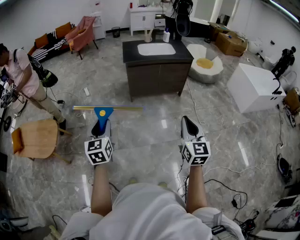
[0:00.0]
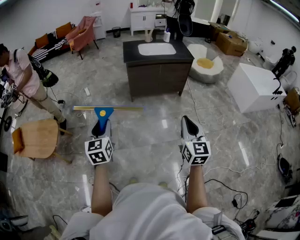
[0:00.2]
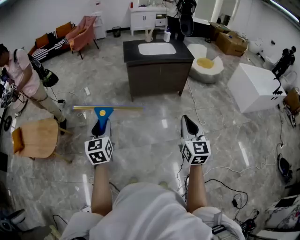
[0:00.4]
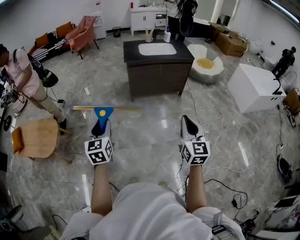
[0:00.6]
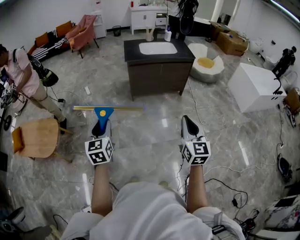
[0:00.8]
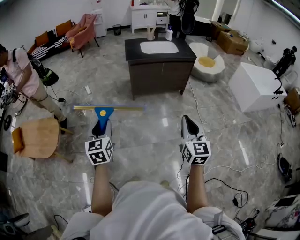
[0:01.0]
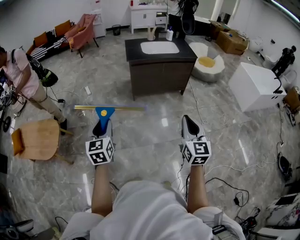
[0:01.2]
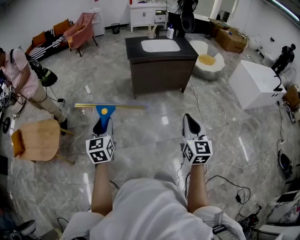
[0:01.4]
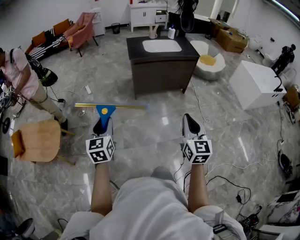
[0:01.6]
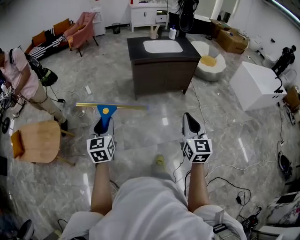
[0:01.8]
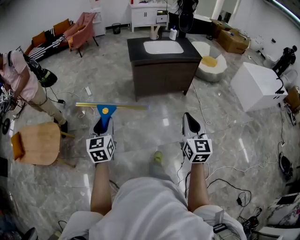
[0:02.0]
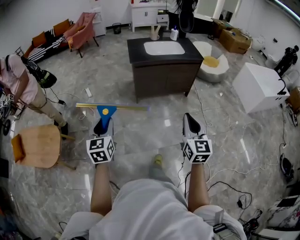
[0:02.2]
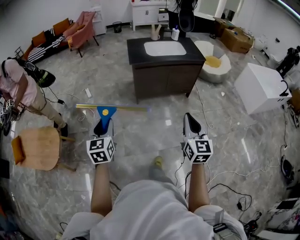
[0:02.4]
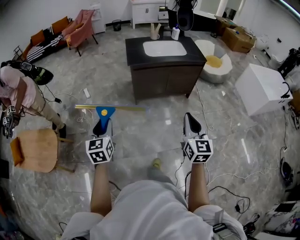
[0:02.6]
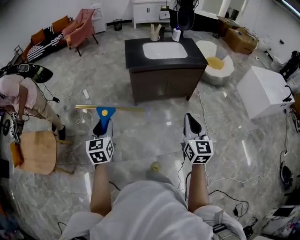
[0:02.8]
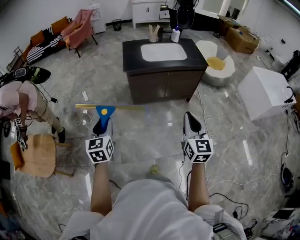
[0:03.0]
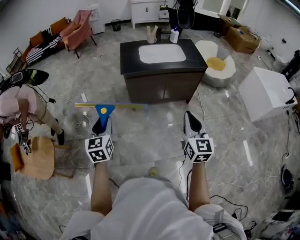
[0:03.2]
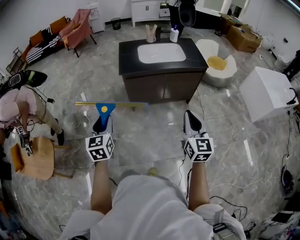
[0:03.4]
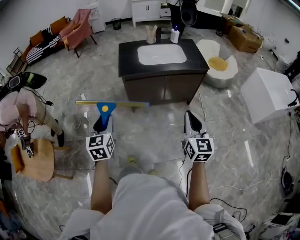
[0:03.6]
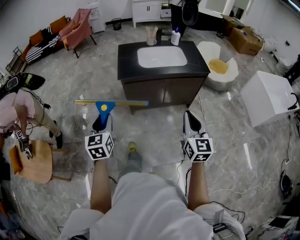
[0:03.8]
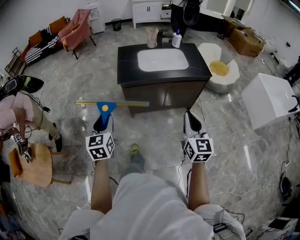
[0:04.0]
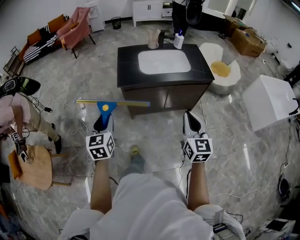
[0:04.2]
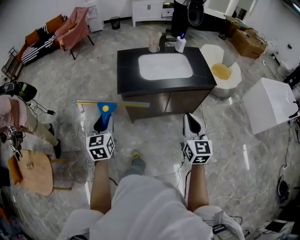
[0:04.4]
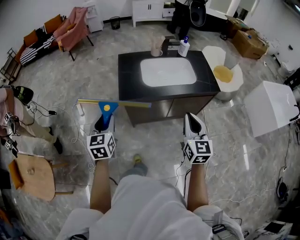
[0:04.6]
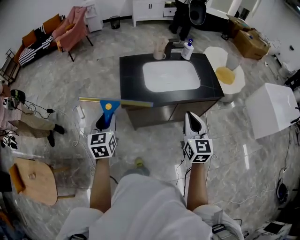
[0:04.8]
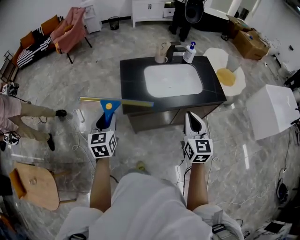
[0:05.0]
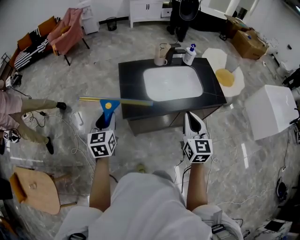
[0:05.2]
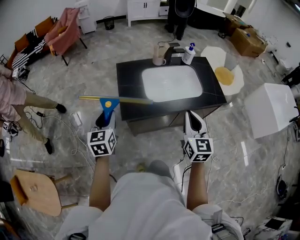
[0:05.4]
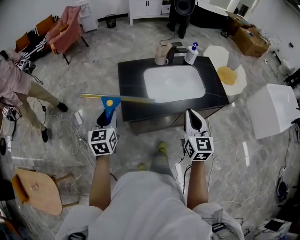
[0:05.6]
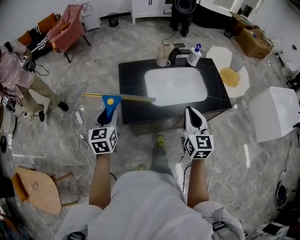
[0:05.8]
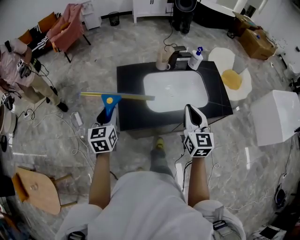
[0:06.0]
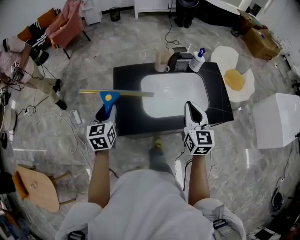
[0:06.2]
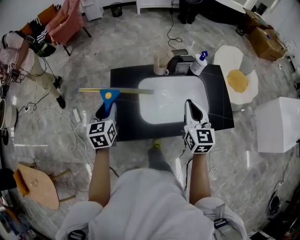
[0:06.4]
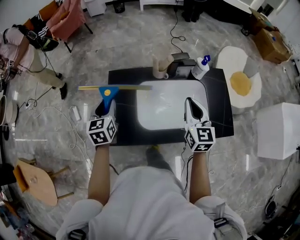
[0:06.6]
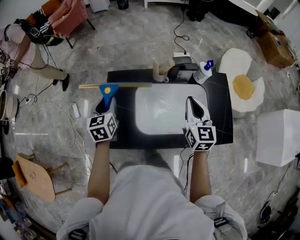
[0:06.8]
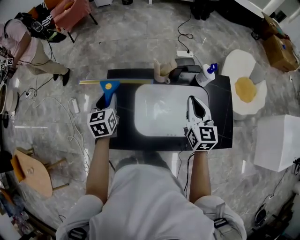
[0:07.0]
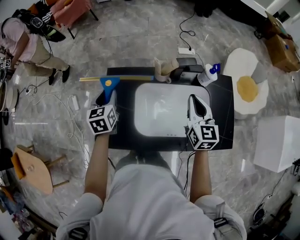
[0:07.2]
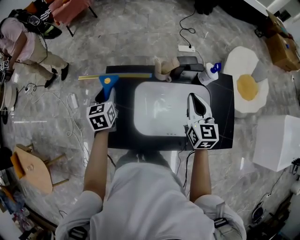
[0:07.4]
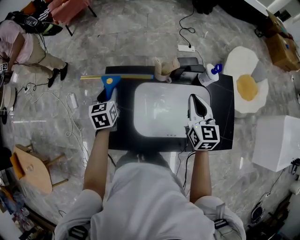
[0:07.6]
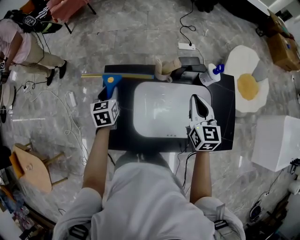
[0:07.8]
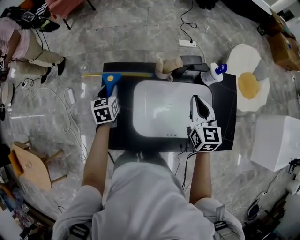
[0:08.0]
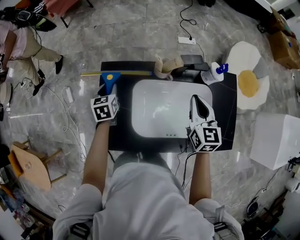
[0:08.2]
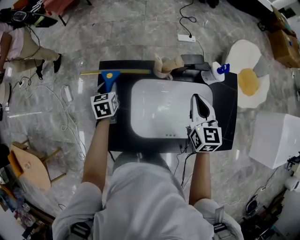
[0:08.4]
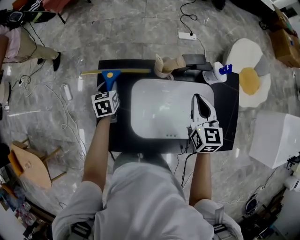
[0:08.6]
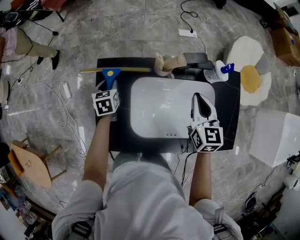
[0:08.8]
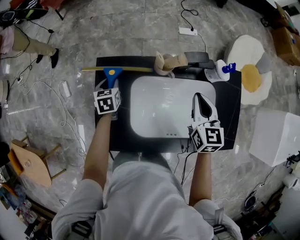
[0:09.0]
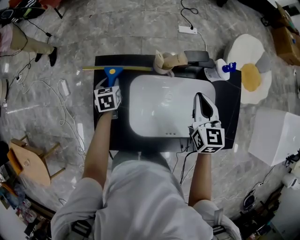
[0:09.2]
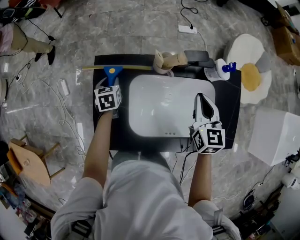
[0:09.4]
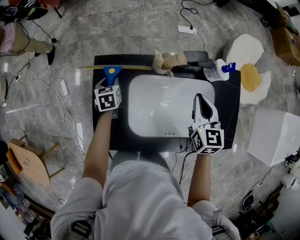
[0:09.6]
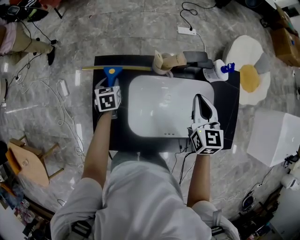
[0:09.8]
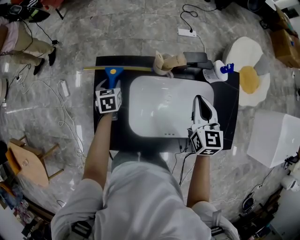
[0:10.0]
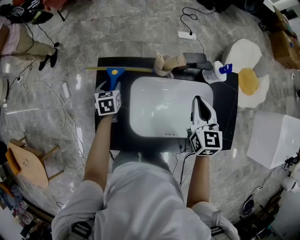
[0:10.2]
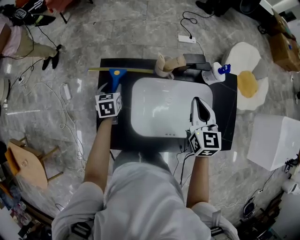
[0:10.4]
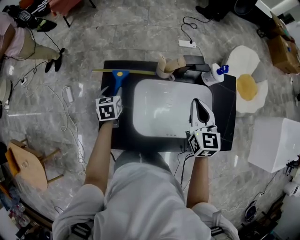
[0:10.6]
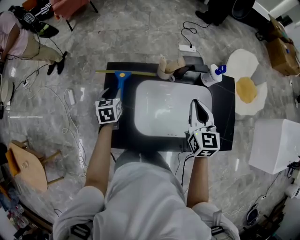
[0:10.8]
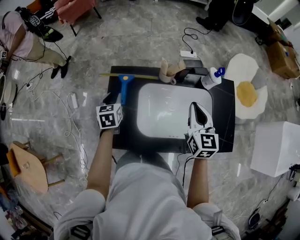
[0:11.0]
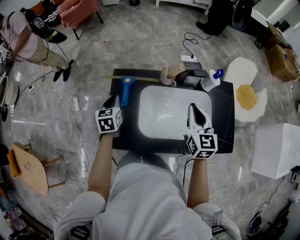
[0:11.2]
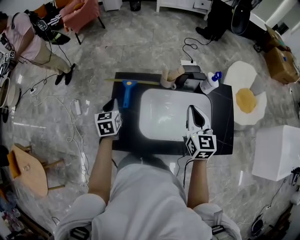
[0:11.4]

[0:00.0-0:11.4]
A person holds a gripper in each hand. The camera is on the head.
0:00.0 to 0:01.4: Both grippers move to the left, approximately 10 cm.
0:01.4 to 0:02.8: Both grippers move forward, about 30 cm.
0:02.8 to 0:04.2: The two grippers go about 30 cm forward.
0:04.2 to 0:05.6: The grippers both shift forward by approximately 35 cm.
0:05.6 to 0:07.2: Both grippers are carried forward, about 40 cm.
0:07.2 to 0:08.6: The right gripper goes about 10 cm downward and forward. Meanwhile the left gripper shifts some 20 cm downward and forward.
0:08.6 to 0:10.0: The grippers move only a little.
0:10.0 to 0:11.4: The right gripper heads backward, upward and to the left, covering roughly 15 cm. Meanwhile the left gripper travels upward and backward by about 20 cm, and closes its fingers.

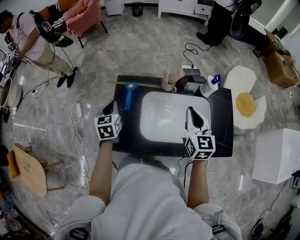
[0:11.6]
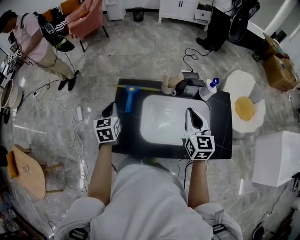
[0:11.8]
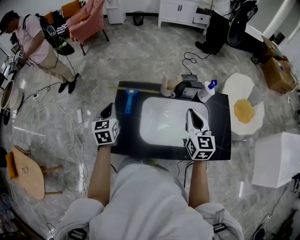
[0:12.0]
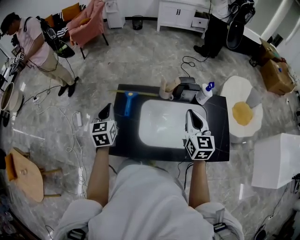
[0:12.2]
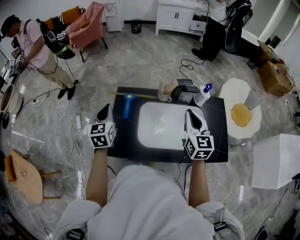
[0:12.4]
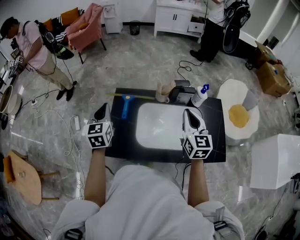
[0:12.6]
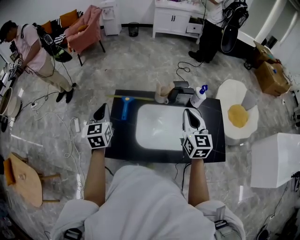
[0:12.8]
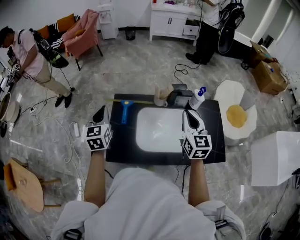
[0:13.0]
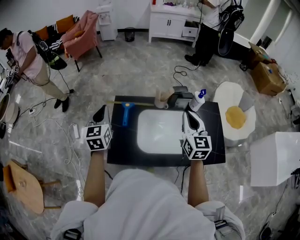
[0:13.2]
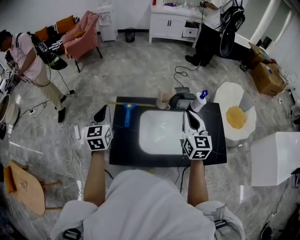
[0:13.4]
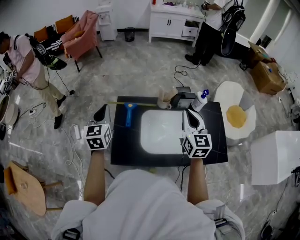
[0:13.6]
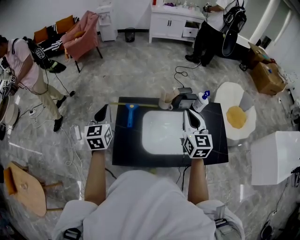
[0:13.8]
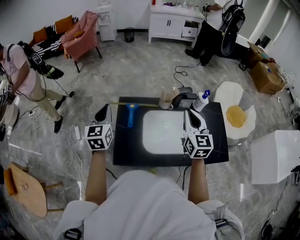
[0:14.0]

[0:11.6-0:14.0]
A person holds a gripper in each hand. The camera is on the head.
0:11.6 to 0:12.8: The left gripper goes some 10 cm upward. The right gripper goes some 5 cm upward.
0:12.8 to 0:14.0: The left gripper ends up approximately 5 cm from where it was; the right gripper moves to the left, some 5 cm.

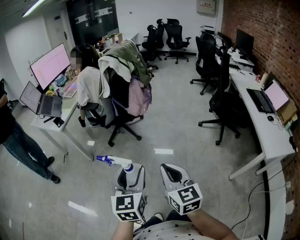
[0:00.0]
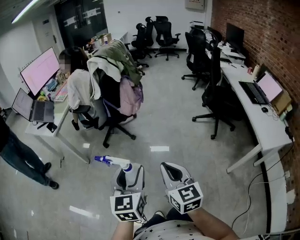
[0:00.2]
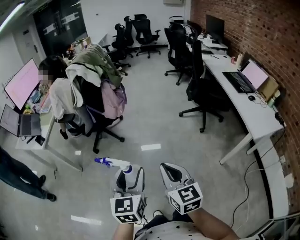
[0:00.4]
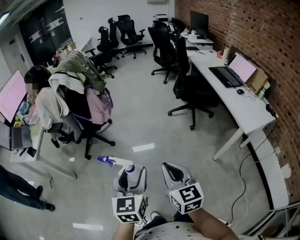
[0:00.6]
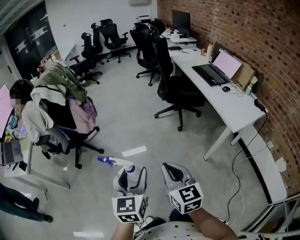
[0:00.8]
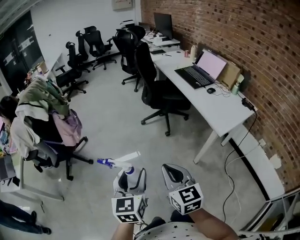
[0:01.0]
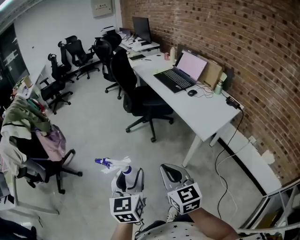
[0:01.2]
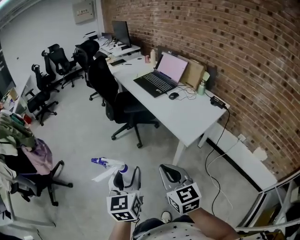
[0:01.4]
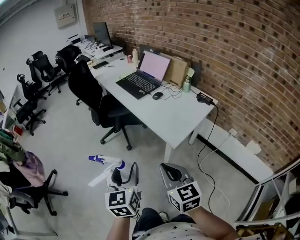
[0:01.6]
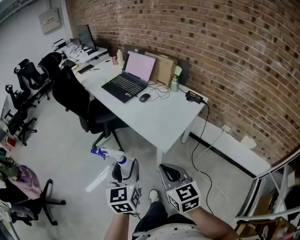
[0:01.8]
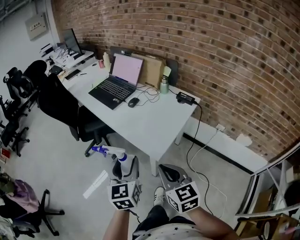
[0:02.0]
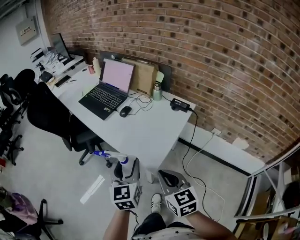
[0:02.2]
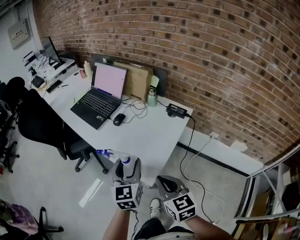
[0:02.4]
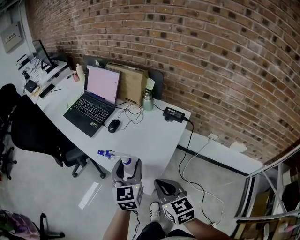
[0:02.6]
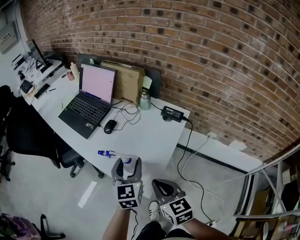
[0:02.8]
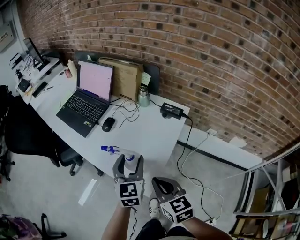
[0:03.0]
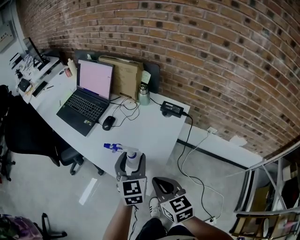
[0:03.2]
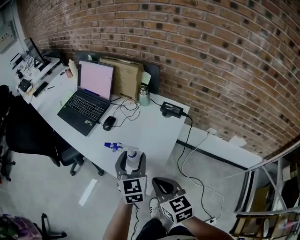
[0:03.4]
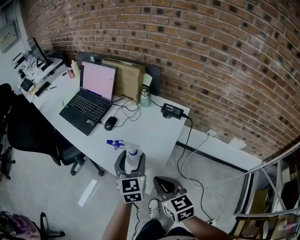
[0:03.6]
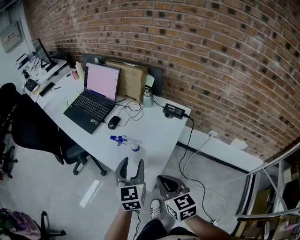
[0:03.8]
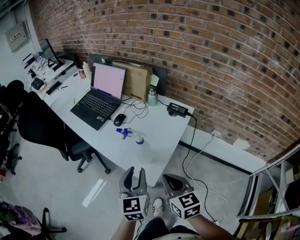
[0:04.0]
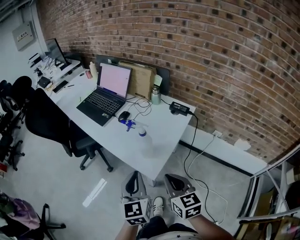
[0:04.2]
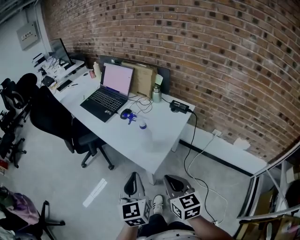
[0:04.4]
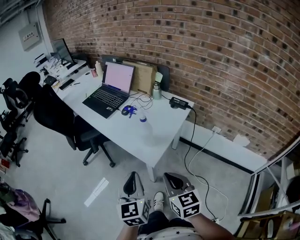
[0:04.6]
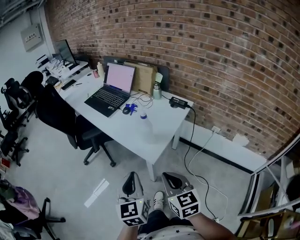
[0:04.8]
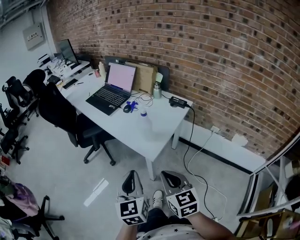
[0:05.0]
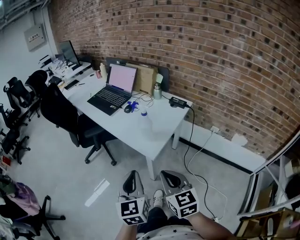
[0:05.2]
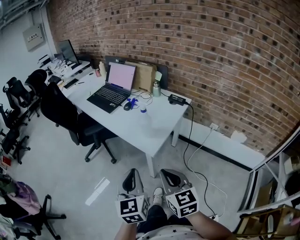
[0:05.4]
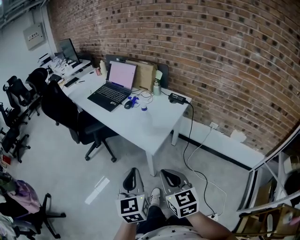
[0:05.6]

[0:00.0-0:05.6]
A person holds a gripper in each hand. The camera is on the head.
0:00.0 to 0:01.4: The pair of grippers is taken approximately 60 cm. The right gripper changes its angle by approximately 40 degrees. The left gripper swivels roughly 40 degrees.
0:01.4 to 0:02.8: The grippers both shift forward and to the right by roughly 40 cm. The right gripper turns by approximately 30 degrees. Meanwhile the left gripper swivels approximately 30 degrees.
0:02.8 to 0:04.2: The left gripper goes some 15 cm backward, and closes its fingers, while the right gripper is displaced backward by about 10 cm.
0:04.2 to 0:05.6: The two grippers go some 15 cm backward.

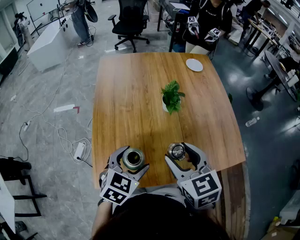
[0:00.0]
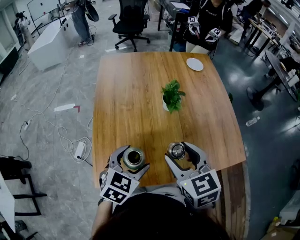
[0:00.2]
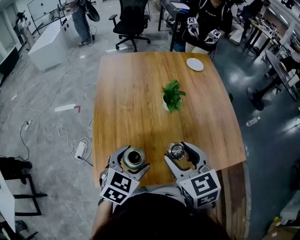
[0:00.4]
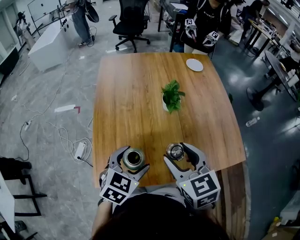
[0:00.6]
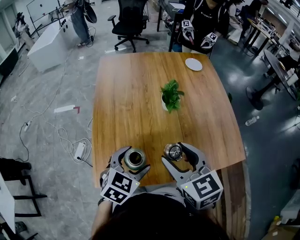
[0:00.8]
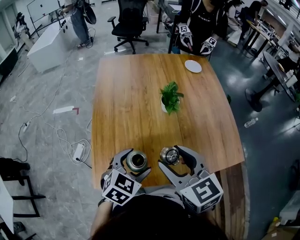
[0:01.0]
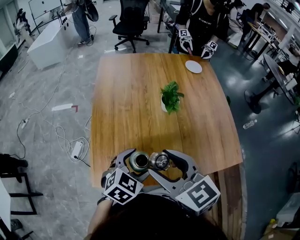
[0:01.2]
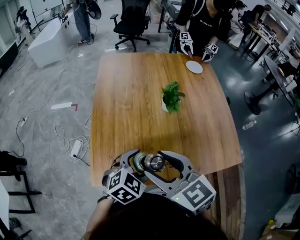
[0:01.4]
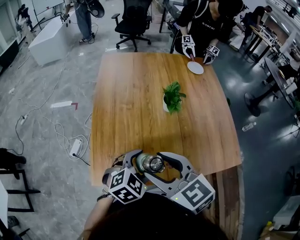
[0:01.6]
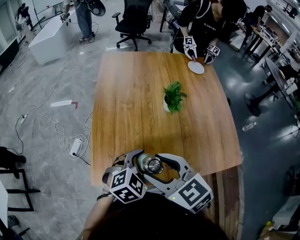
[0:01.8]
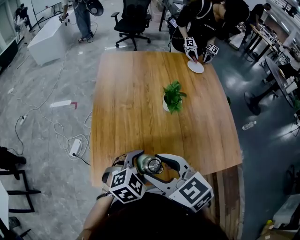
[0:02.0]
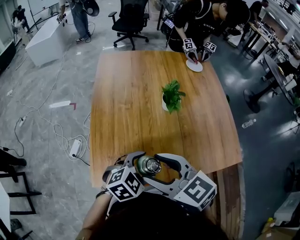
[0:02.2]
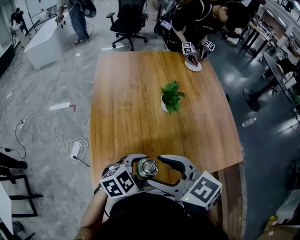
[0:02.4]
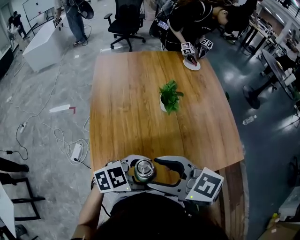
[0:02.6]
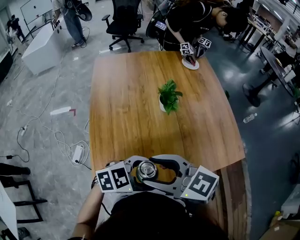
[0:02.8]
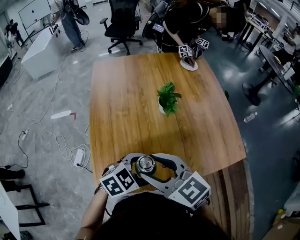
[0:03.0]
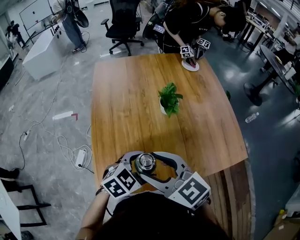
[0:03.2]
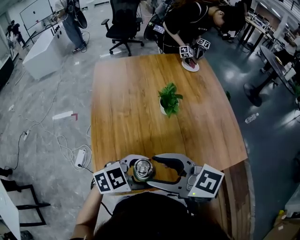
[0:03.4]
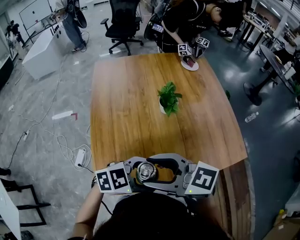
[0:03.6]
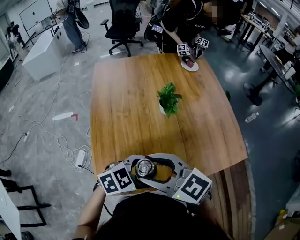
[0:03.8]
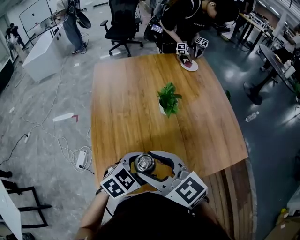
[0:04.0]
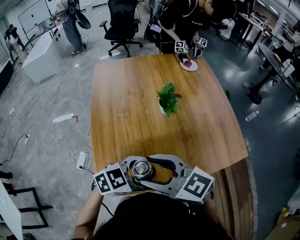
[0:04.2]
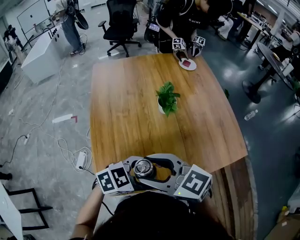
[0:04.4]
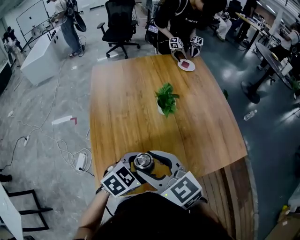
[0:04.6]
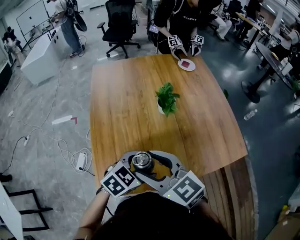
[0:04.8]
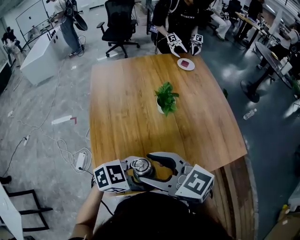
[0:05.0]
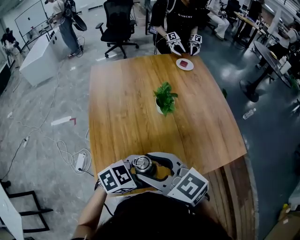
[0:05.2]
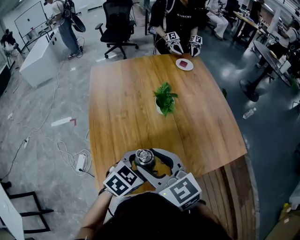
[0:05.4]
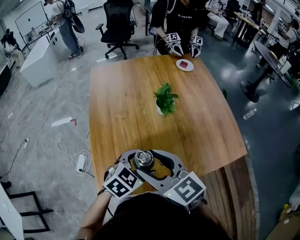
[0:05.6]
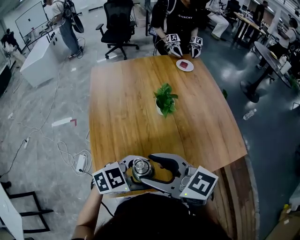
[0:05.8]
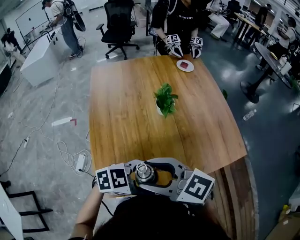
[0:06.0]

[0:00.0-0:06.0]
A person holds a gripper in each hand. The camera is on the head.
0:00.0 to 0:01.6: The right gripper travels to the left and backward by some 10 cm, and turns by some 20 degrees. Meanwhile the left gripper moves roughly 5 cm.
0:01.6 to 0:03.0: The left gripper turns by some 20 degrees.
